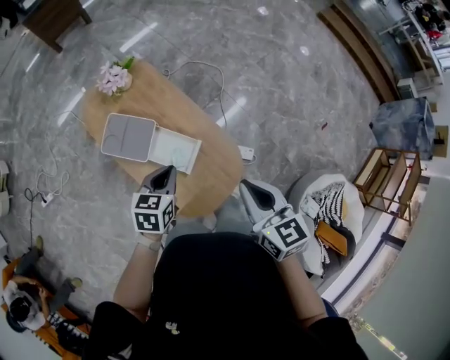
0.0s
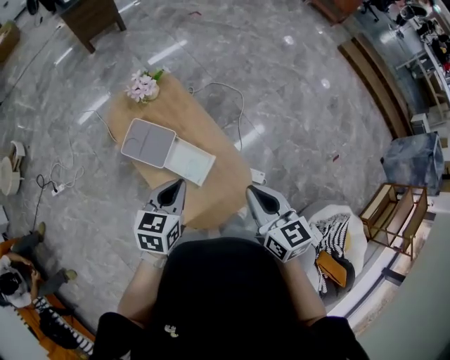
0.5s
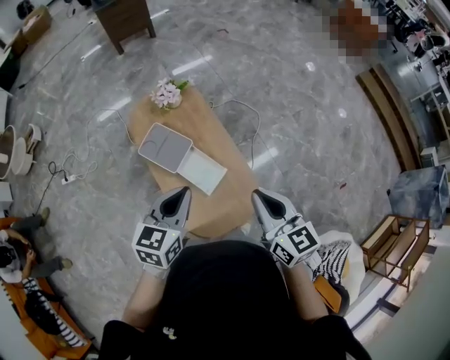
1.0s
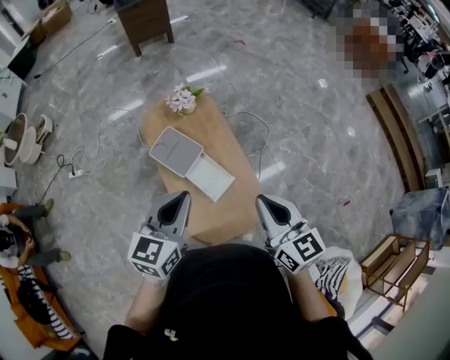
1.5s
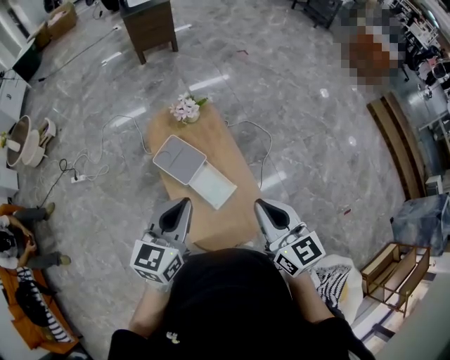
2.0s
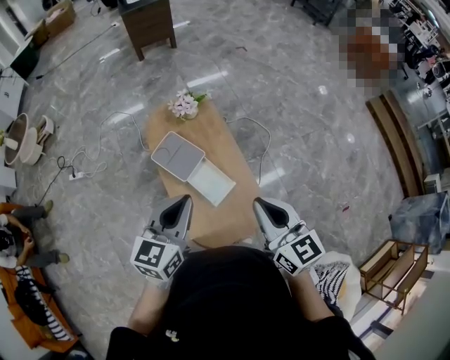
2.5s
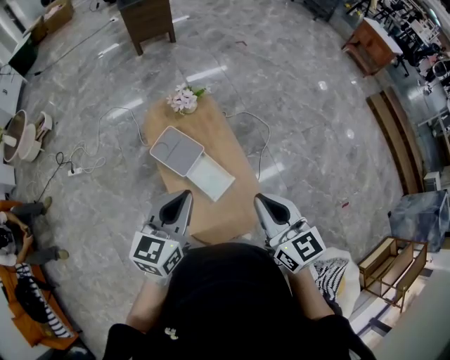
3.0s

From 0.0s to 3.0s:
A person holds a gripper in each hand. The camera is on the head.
From 0.0s to 1.5s: The right gripper goes roughly 10 cm upward, and turns by approximately 30 degrees, while the left gripper travels upward by about 25 cm, and swivels about 30 degrees.
From 1.5s to 3.0s: The grippers move only a little.

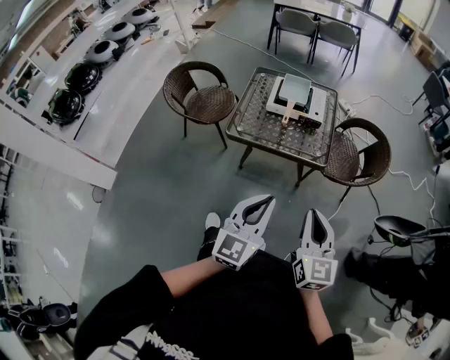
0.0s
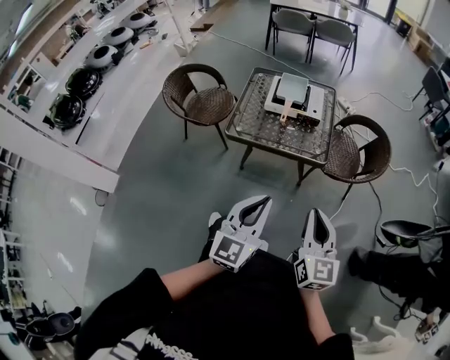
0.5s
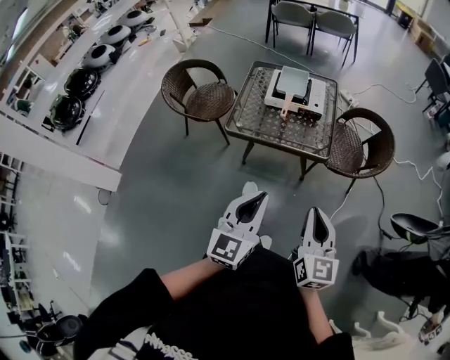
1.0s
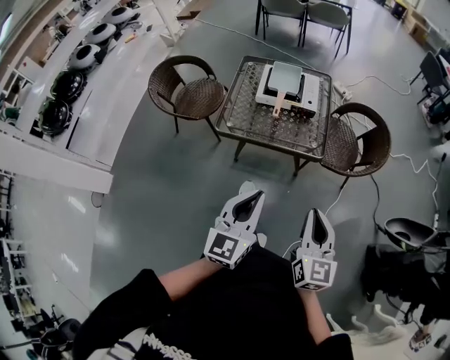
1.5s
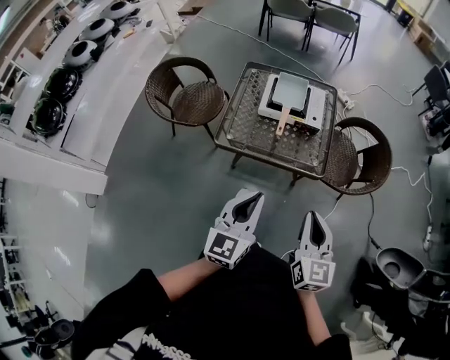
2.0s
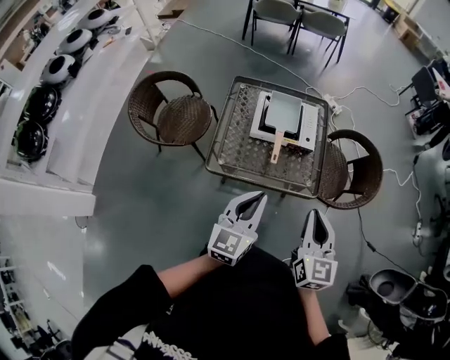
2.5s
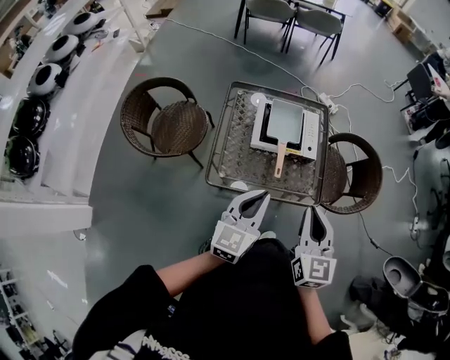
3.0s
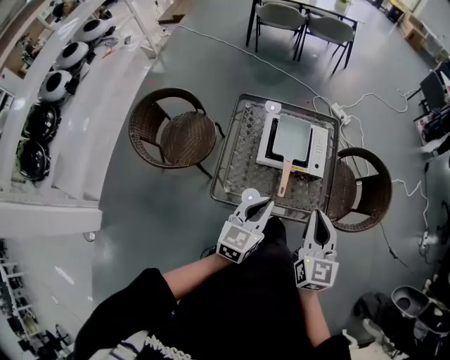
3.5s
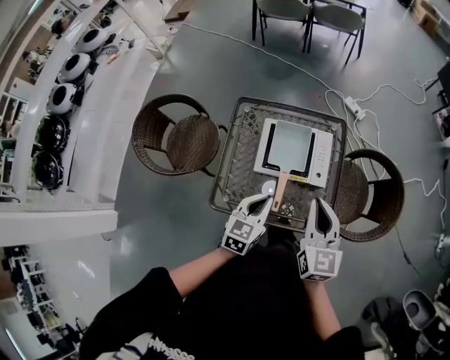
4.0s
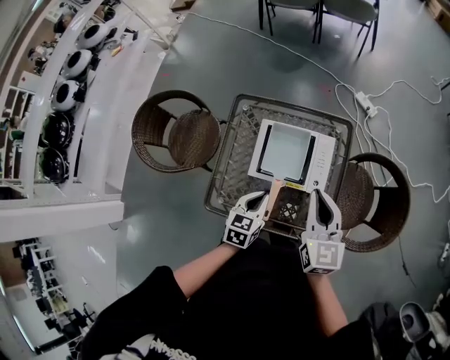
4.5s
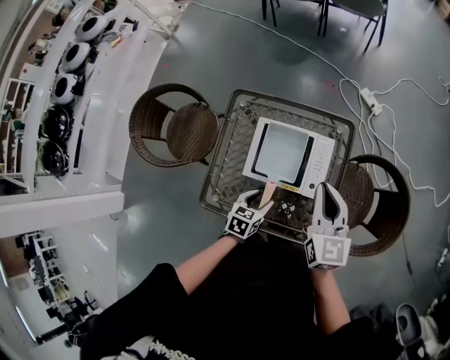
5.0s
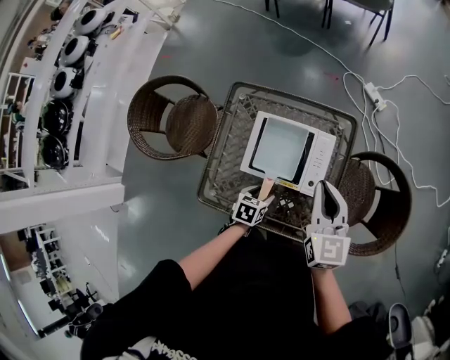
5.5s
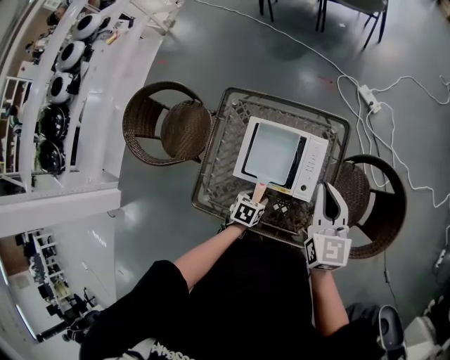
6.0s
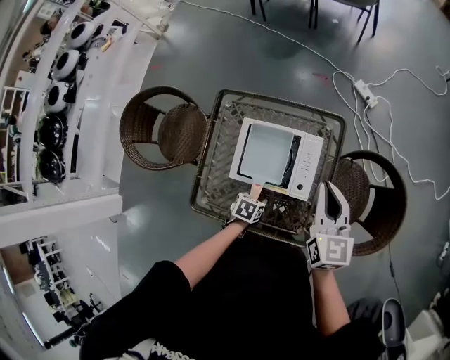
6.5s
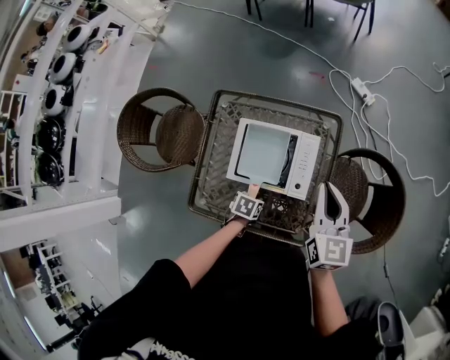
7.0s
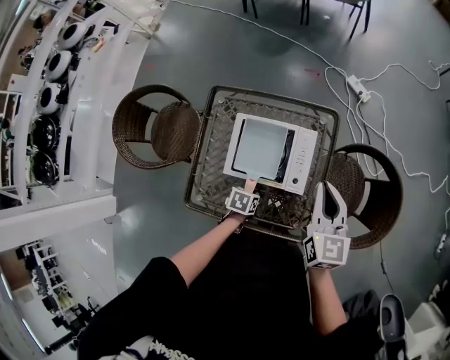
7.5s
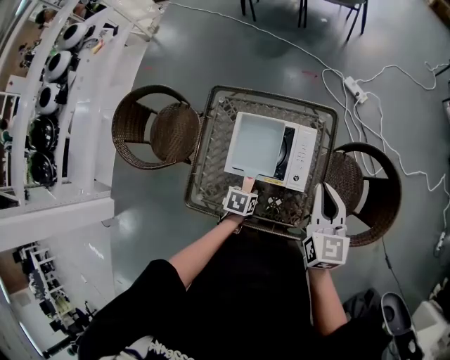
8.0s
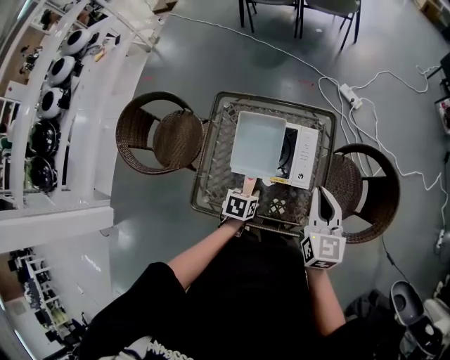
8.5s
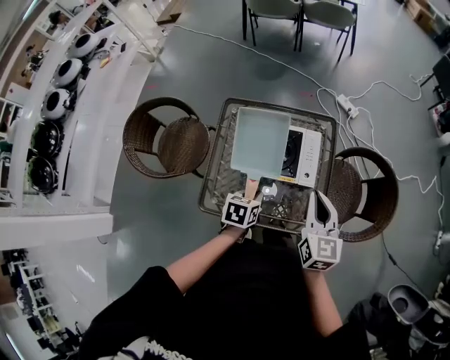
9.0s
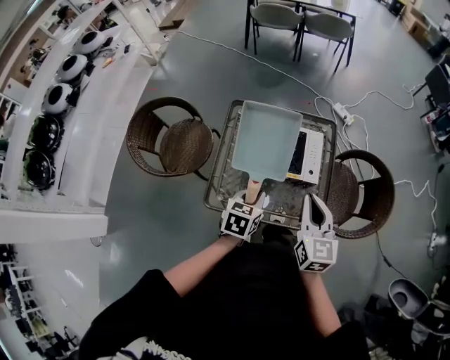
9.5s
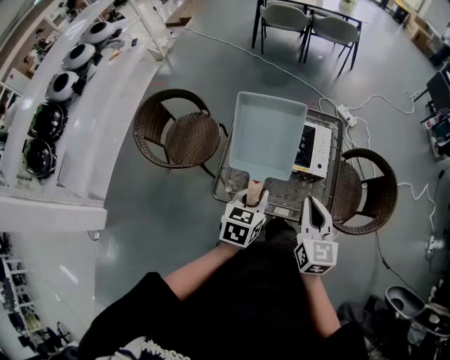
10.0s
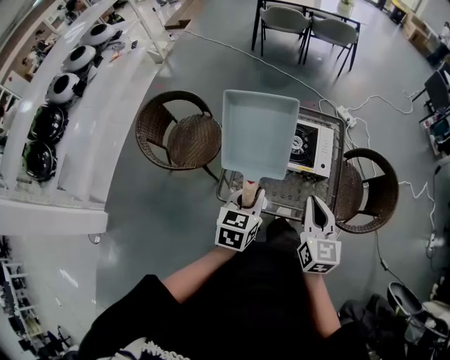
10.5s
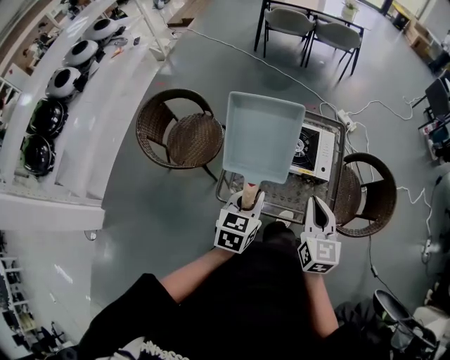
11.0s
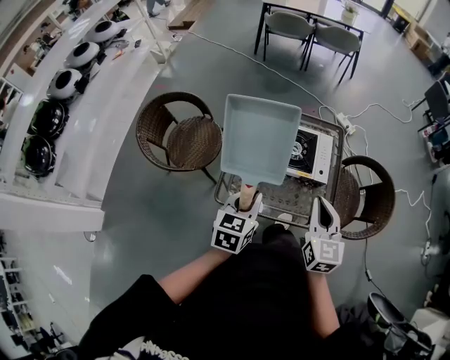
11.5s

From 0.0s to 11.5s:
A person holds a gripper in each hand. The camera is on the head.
From 0.0s to 2.0s: Both grippers move forward, approximately 15 cm.
From 2.0s to 4.0s: Both grippers move forward, roughly 40 cm. The left gripper swivels roughly 20 degrees.
From 4.0s to 6.0s: The right gripper is displaced forward and to the right by about 20 cm. Meanwhile the left gripper travels downward by roughly 25 cm, tips its fingers downward by some 40 degrees, and opens up.
From 6.0s to 7.5s: The left gripper closes.
From 7.5s to 9.5s: The left gripper moves upward and backward, approximately 25 cm, and changes its angle by roughly 30 degrees, while the right gripper is displaced backward by about 25 cm.
From 9.5s to 11.5s: The right gripper moves backward, some 5 cm. Meanwhile the left gripper travels upward, to the left and backward by some 15 cm.

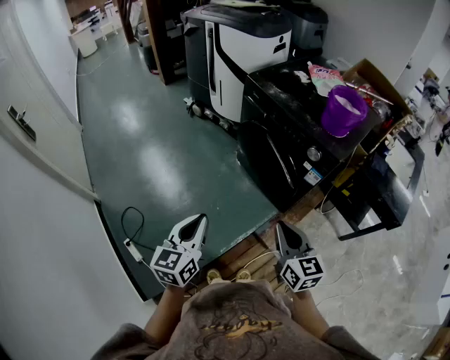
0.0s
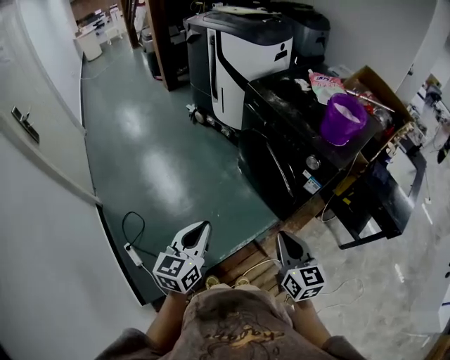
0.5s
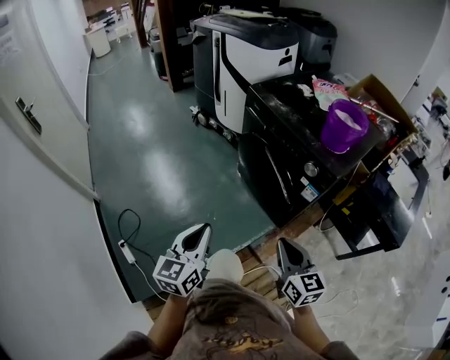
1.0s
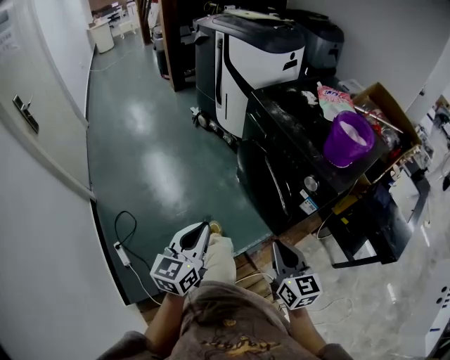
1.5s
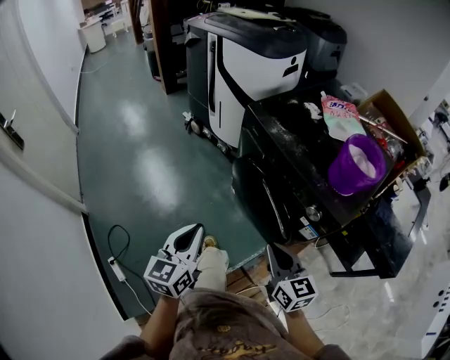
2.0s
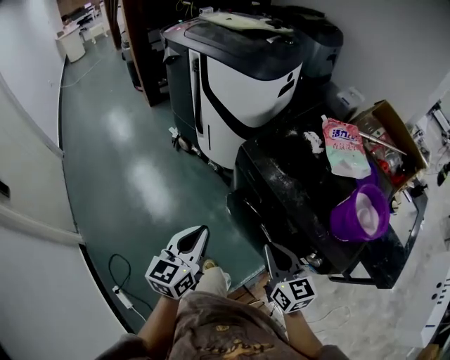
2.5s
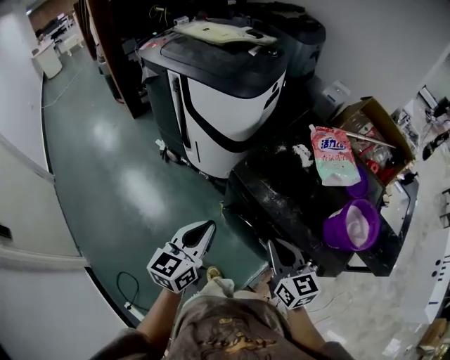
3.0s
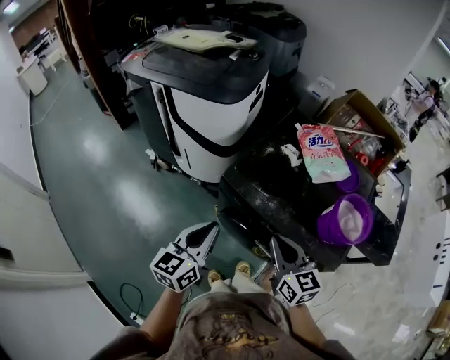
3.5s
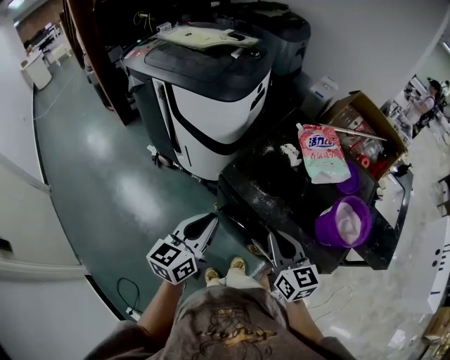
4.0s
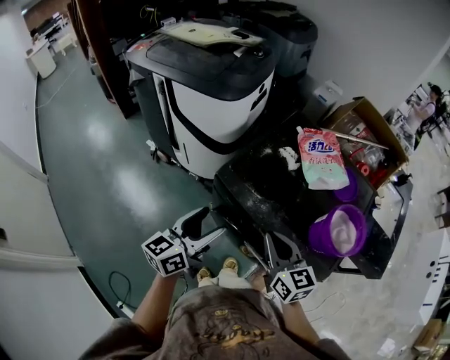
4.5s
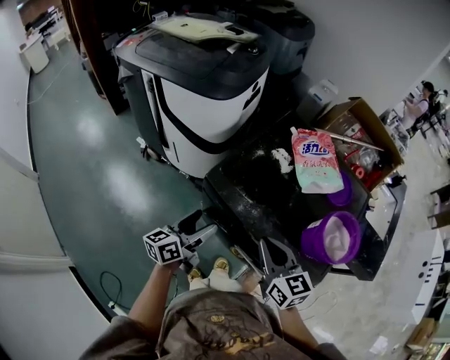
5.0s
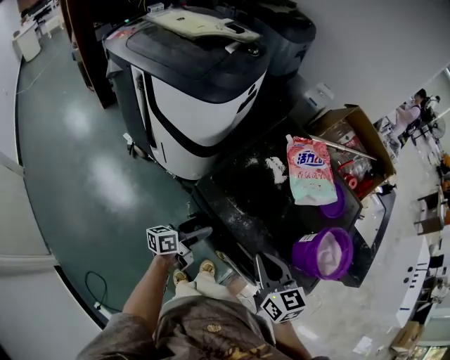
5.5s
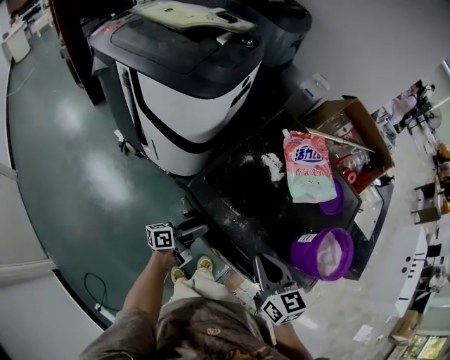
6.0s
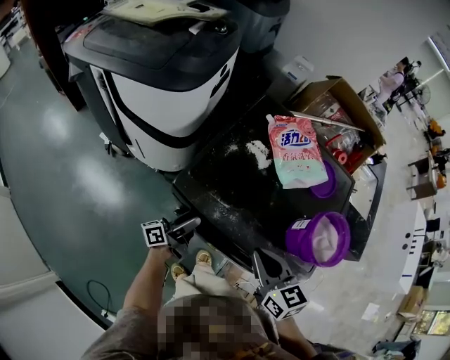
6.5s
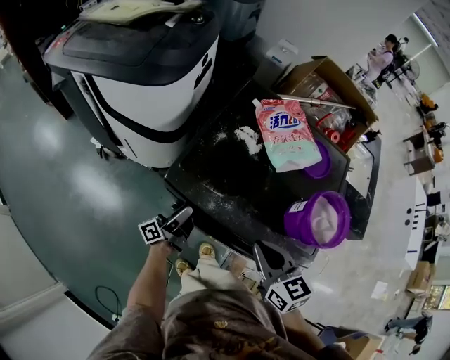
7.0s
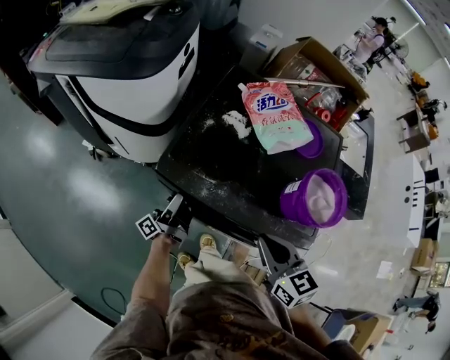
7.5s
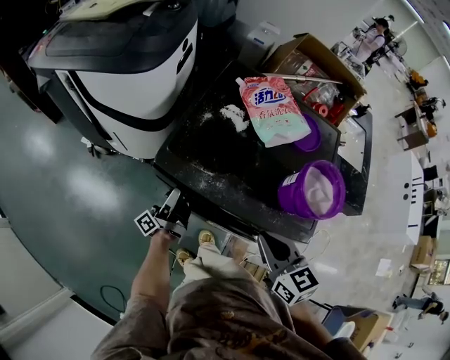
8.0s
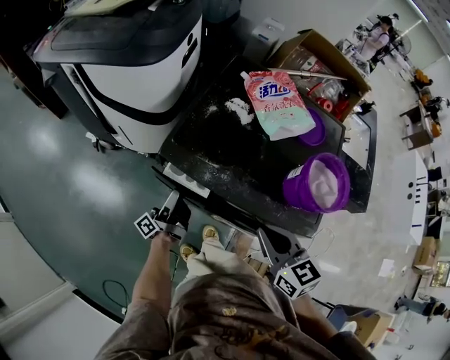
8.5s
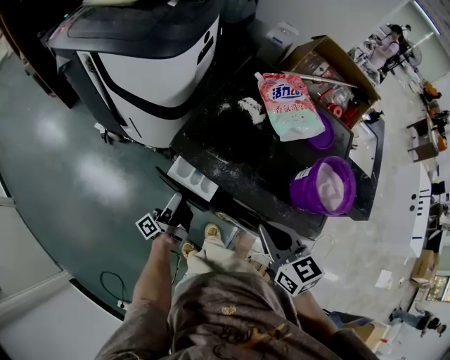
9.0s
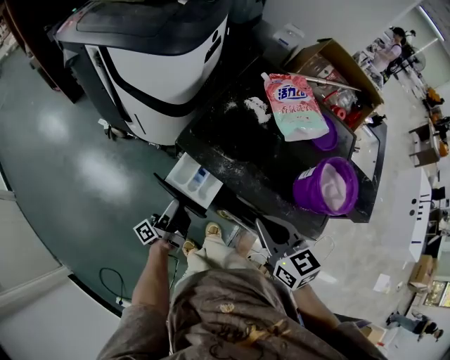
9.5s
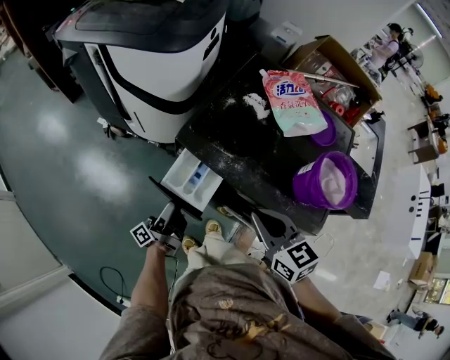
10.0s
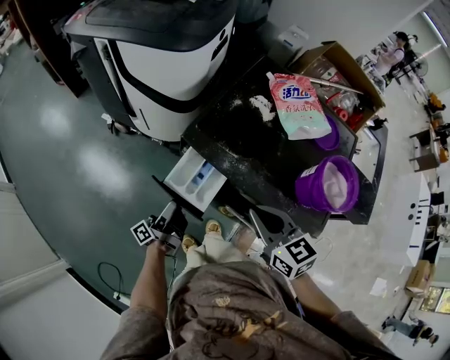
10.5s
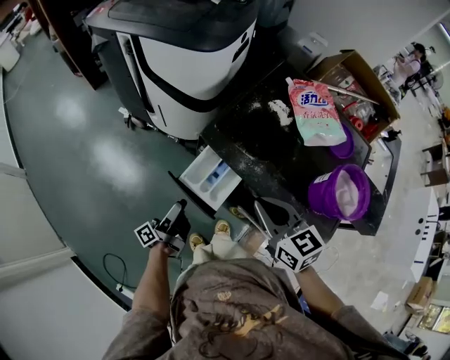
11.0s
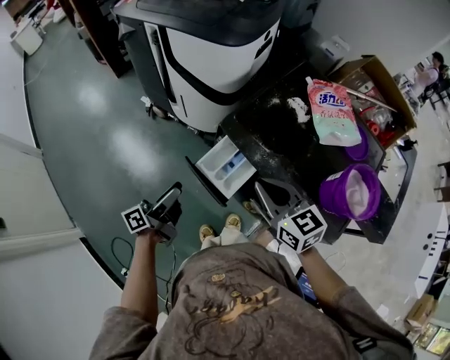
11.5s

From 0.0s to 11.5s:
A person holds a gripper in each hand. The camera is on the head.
From 0.0s to 2.0s: The two grippers go roughly 20 cm forward.
From 2.0s to 4.0s: The right gripper is displaced forward and upward by some 30 cm, while the left gripper travels forward by about 35 cm, and rotates some 30 degrees.
From 4.0s to 6.0s: The right gripper shifts by approximately 5 cm, while the left gripper heads downward and forward, covering about 25 cm, twists approximately 40 degrees counterclockwise, seen from behind, and opens.
From 6.0s to 7.5s: The left gripper swivels approximately 30 degrees; the right gripper travels to the right by roughly 5 cm.
From 7.5s to 9.5s: The left gripper travels backward and to the left by roughly 10 cm.
From 9.5s to 11.5s: The right gripper shifts approximately 10 cm to the left and forward, while the left gripper heads to the left, upward and backward, covering approximately 15 cm, and swivels roughly 20 degrees.

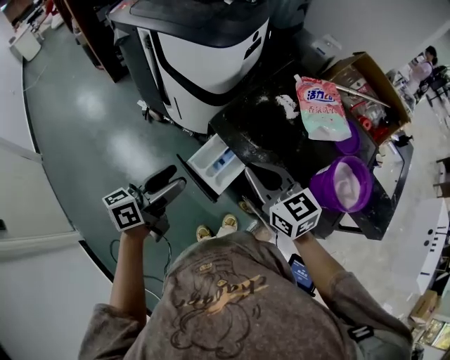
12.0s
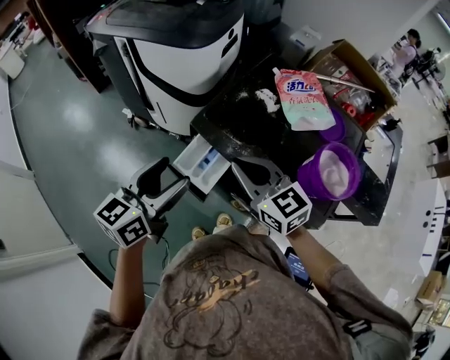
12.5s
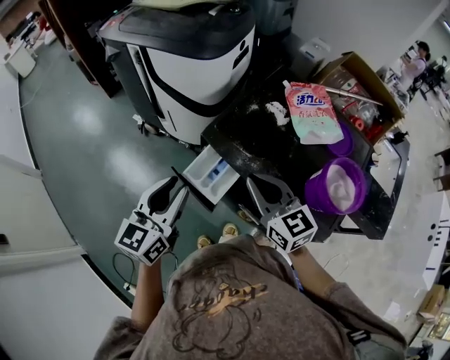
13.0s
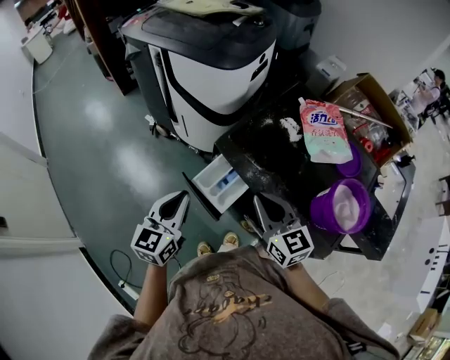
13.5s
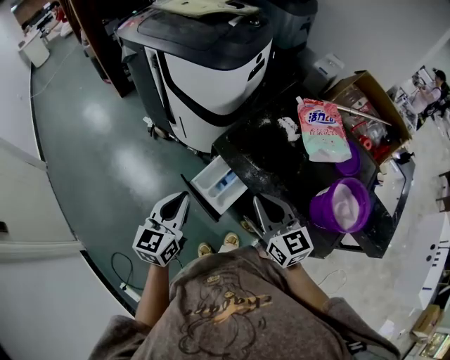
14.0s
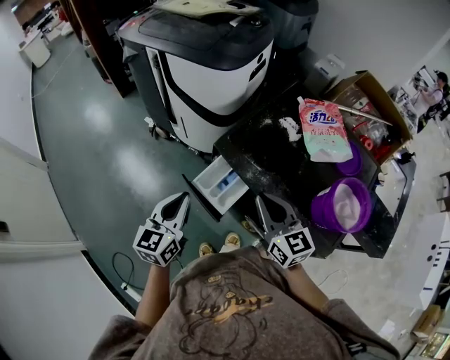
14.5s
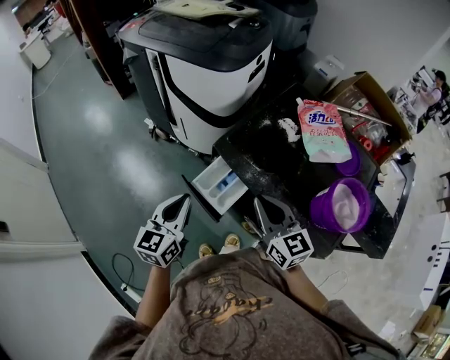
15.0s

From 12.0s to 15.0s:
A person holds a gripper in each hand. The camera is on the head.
From 12.0s to 13.5s: The left gripper swivels about 40 degrees, and closes its fingers.
From 13.5s to 15.0s: Neither gripper changes place.
